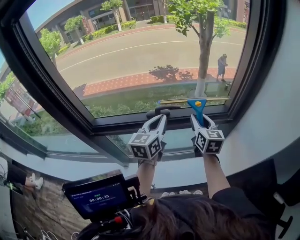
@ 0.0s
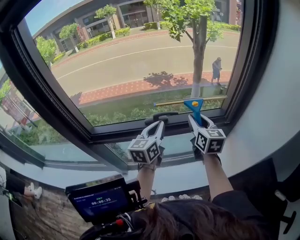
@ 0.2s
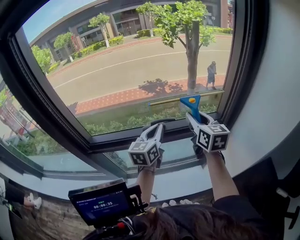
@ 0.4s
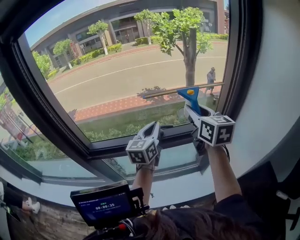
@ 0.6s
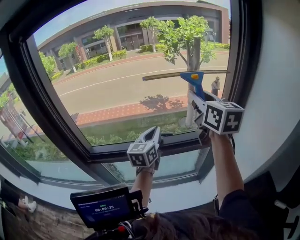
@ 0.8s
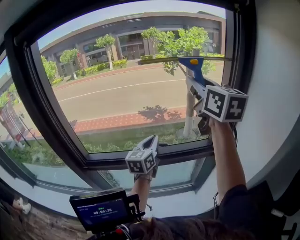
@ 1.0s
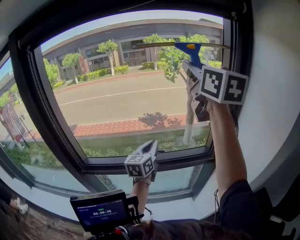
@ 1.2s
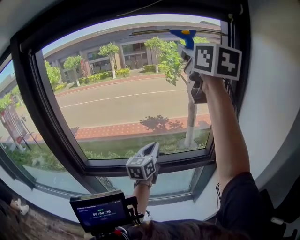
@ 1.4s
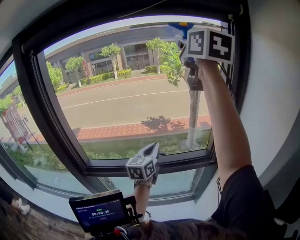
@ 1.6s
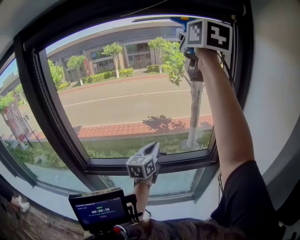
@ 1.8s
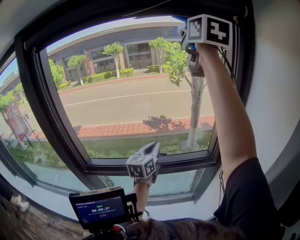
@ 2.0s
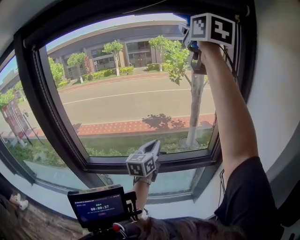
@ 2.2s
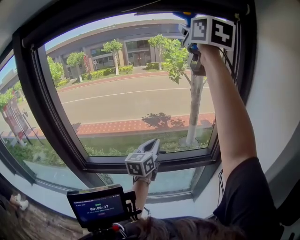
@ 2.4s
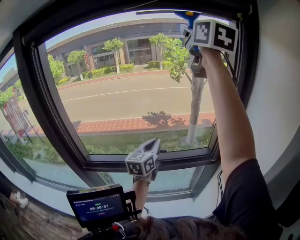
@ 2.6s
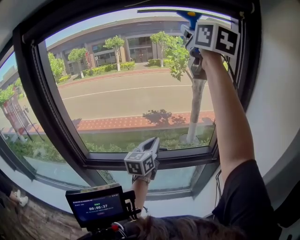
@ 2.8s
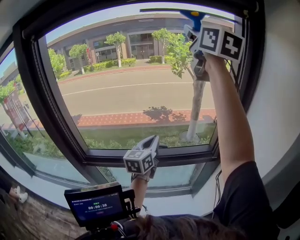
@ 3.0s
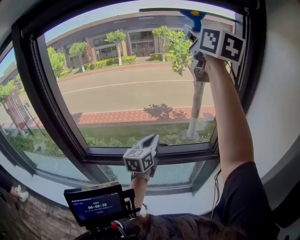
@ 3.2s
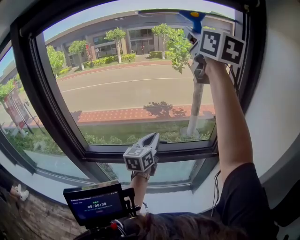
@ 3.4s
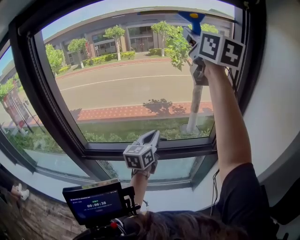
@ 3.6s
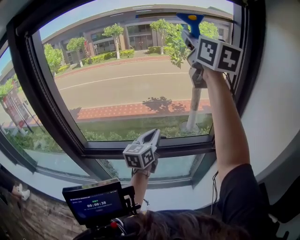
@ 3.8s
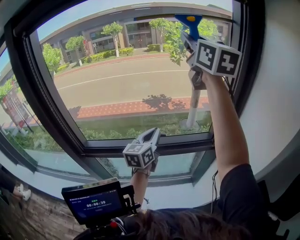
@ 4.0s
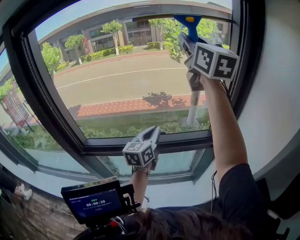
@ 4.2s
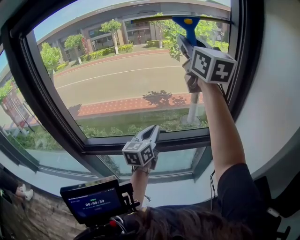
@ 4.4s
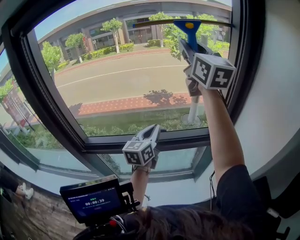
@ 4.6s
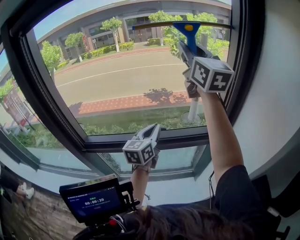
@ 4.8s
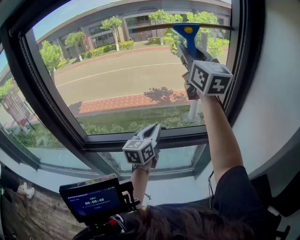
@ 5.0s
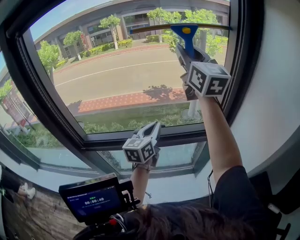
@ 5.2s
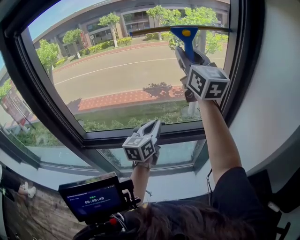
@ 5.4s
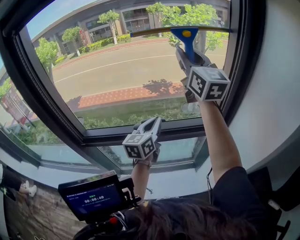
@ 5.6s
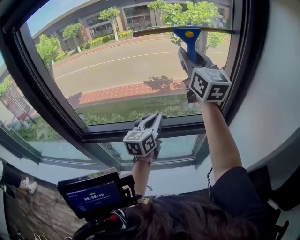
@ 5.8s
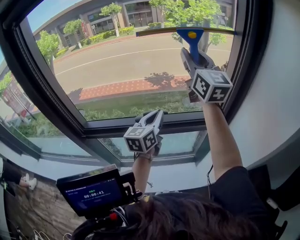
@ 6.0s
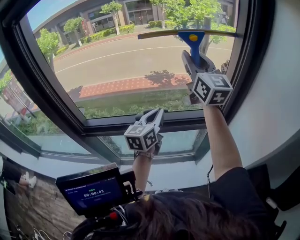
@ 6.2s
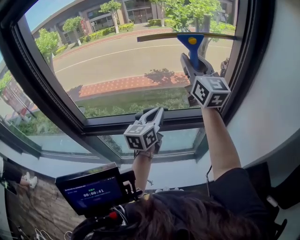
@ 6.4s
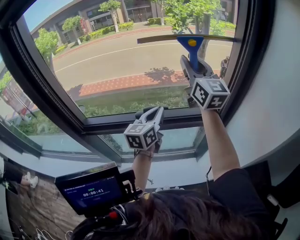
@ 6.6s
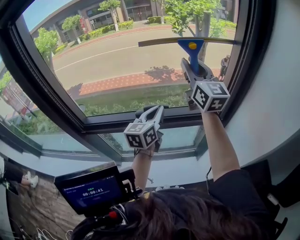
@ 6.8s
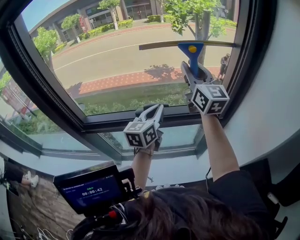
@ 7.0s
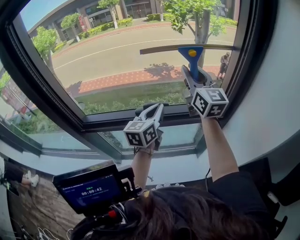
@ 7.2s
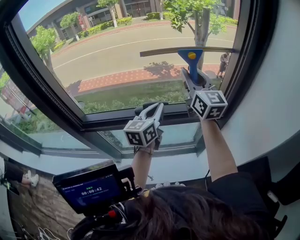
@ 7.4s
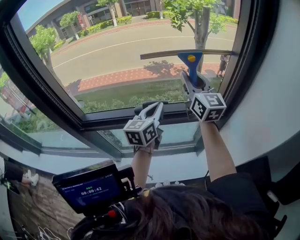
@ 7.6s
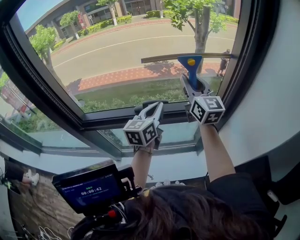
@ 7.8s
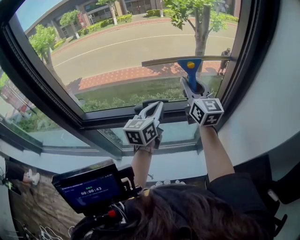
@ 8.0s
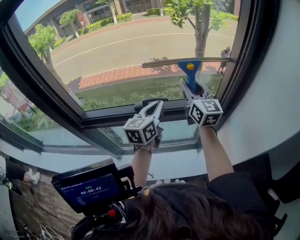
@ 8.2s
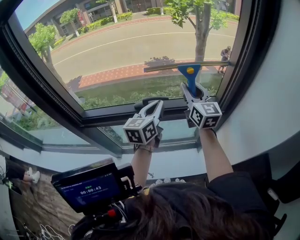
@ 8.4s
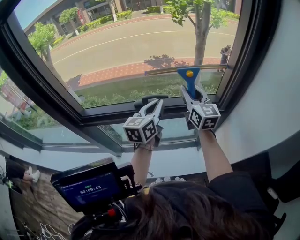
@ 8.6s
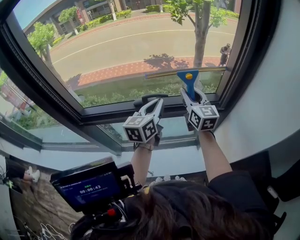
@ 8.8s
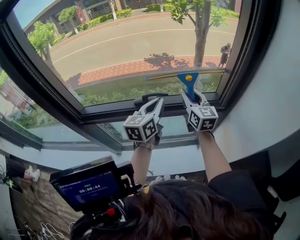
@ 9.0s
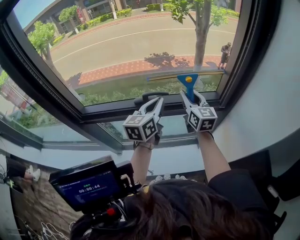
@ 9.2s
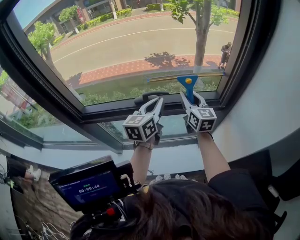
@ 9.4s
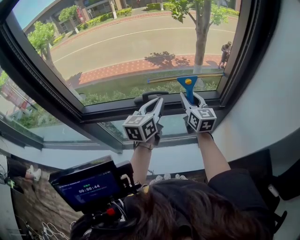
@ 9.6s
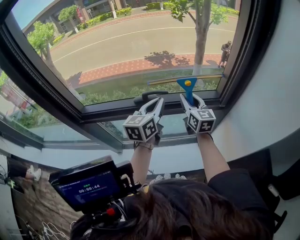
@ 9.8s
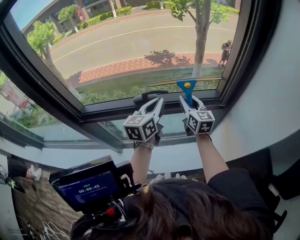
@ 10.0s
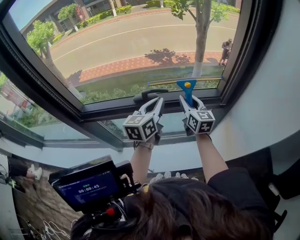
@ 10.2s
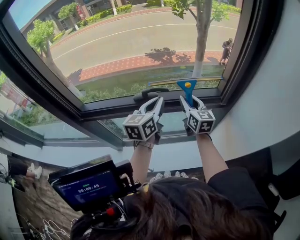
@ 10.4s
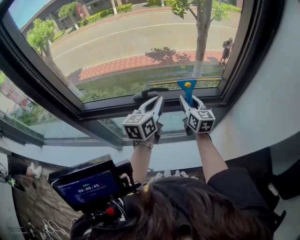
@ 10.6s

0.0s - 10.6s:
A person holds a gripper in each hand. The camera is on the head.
0.0s - 1.6s: The right gripper travels upward by about 50 cm, and rotates some 30 degrees, while the left gripper is displaced upward by approximately 5 cm.
1.6s - 3.0s: The grippers make only small movements.
3.0s - 4.6s: The right gripper is displaced downward by some 10 cm.
4.6s - 6.0s: The right gripper is displaced downward by about 10 cm.
6.0s - 7.6s: The right gripper is displaced downward by roughly 15 cm.
7.6s - 9.0s: The right gripper goes some 15 cm downward.
9.0s - 10.6s: The right gripper travels downward by roughly 5 cm.

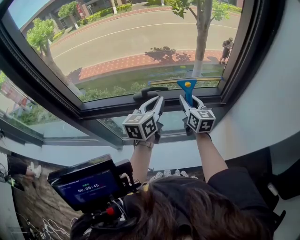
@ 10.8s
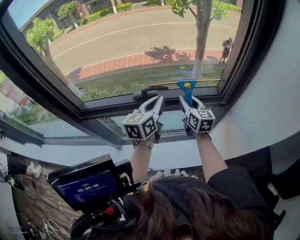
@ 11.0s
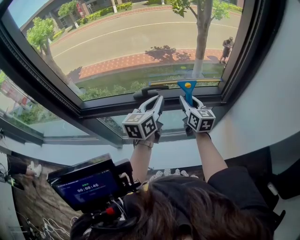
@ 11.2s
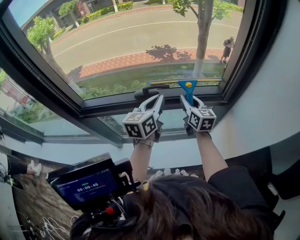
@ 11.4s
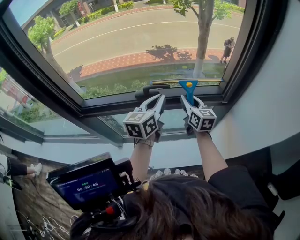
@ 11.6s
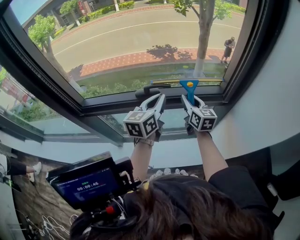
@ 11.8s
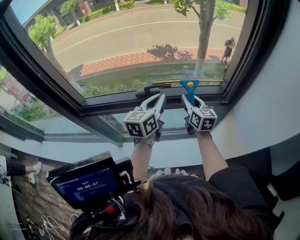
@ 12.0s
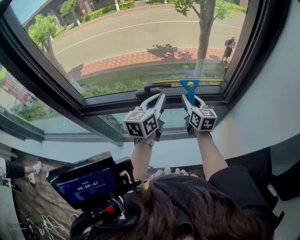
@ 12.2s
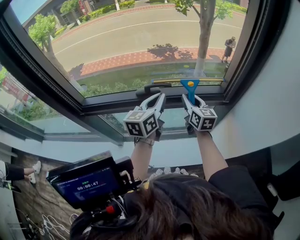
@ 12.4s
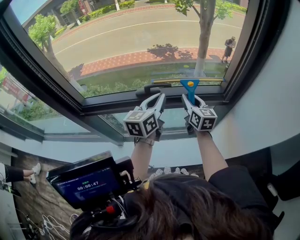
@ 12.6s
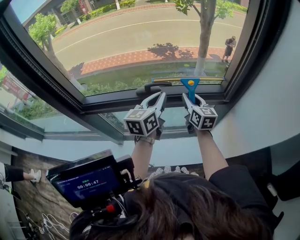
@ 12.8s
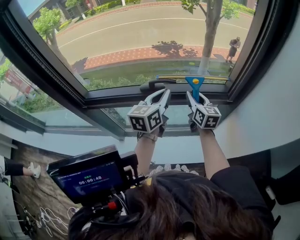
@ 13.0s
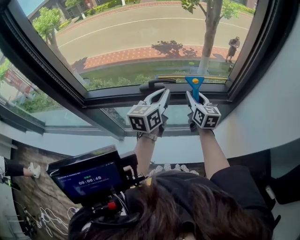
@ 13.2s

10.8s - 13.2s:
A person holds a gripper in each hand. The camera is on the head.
10.8s - 12.0s: The grippers stay close to where they were, moving slightly.
12.0s - 13.2s: Both grippers stay about where they are.

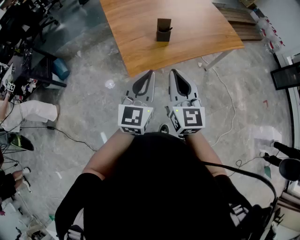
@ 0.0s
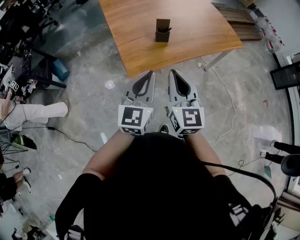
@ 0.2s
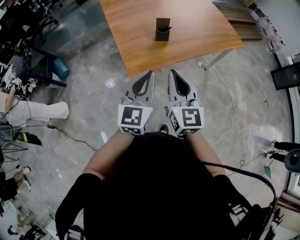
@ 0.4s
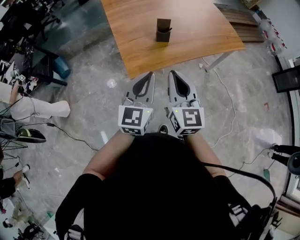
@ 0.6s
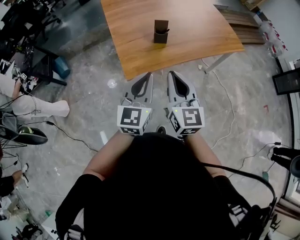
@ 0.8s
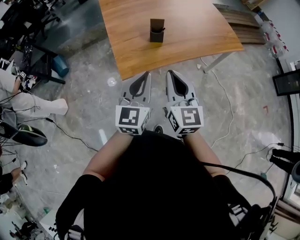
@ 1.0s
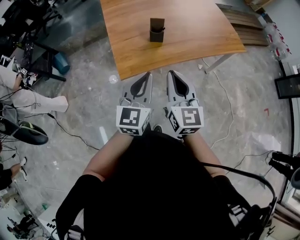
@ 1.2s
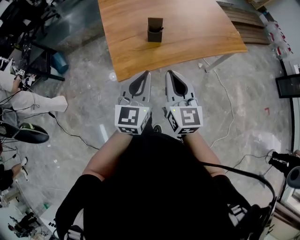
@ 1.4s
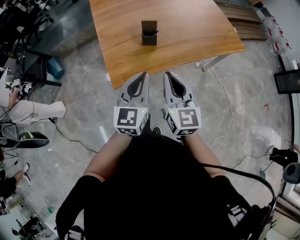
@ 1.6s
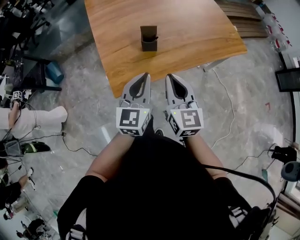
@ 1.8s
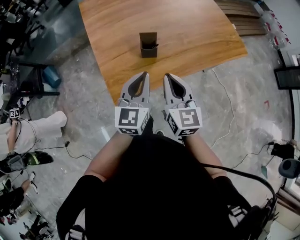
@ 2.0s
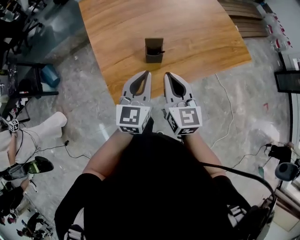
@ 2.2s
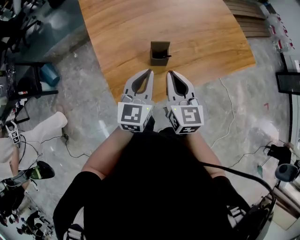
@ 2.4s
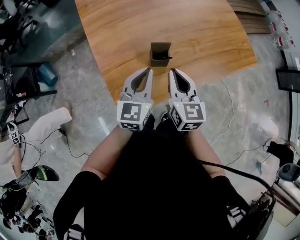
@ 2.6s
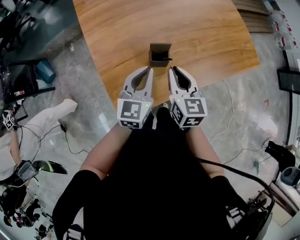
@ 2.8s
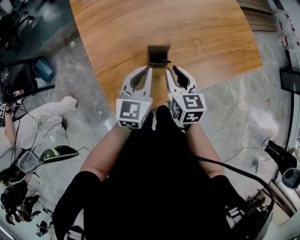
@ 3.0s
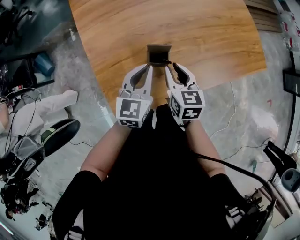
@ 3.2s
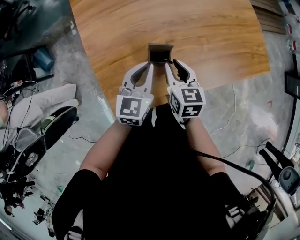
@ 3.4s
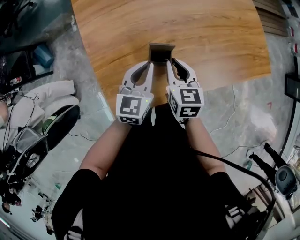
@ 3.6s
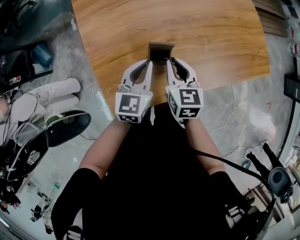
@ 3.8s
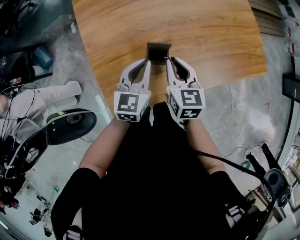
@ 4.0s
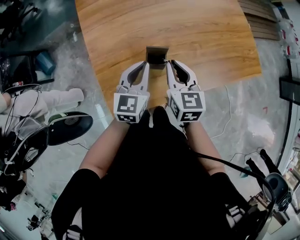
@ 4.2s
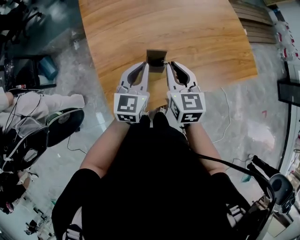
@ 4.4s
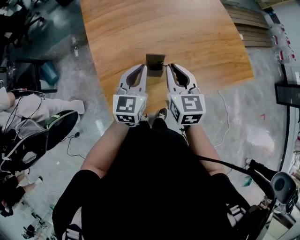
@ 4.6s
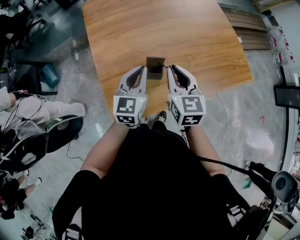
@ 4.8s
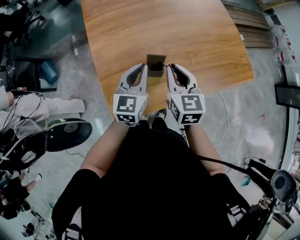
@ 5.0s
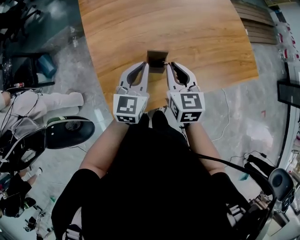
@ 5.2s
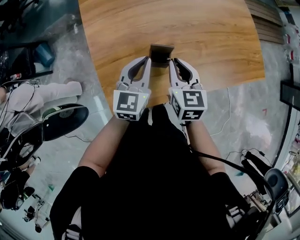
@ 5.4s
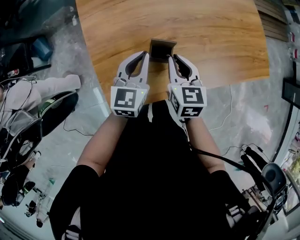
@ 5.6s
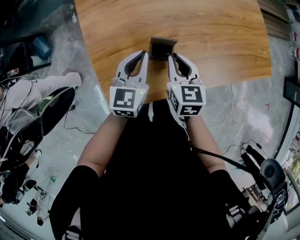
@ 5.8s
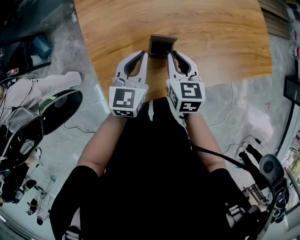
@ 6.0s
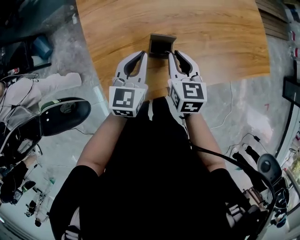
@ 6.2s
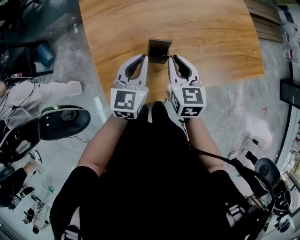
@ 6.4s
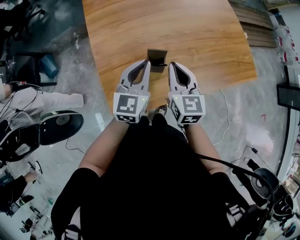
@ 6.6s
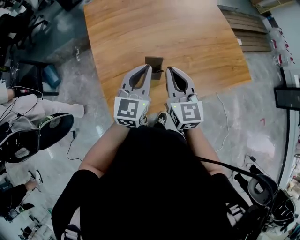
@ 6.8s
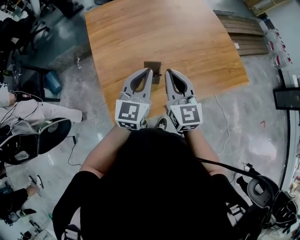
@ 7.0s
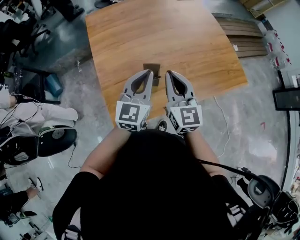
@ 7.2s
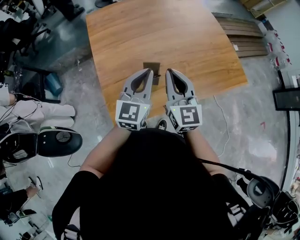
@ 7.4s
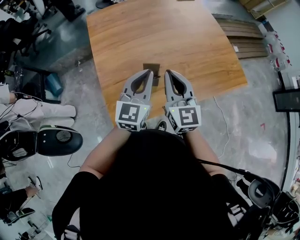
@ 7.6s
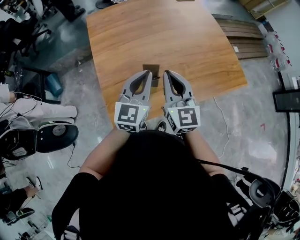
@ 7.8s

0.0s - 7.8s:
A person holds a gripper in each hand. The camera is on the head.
0.0s - 1.6s: Both grippers travel together forward, to the right and downward, some 15 cm.
1.6s - 3.2s: The two grippers go about 35 cm forward and downward. The right gripper changes its angle by about 30 degrees.
3.2s - 4.6s: The right gripper is displaced upward by some 15 cm, while the left gripper shifts some 5 cm upward.
4.6s - 6.2s: Both grippers travel together downward, some 10 cm.
6.2s - 7.8s: Both grippers move upward, some 15 cm. The right gripper tilts its fingers some 30 degrees upward.

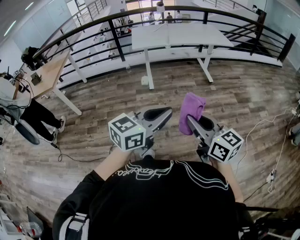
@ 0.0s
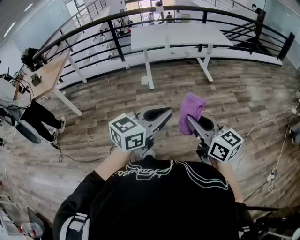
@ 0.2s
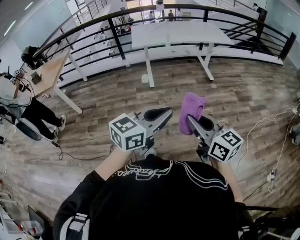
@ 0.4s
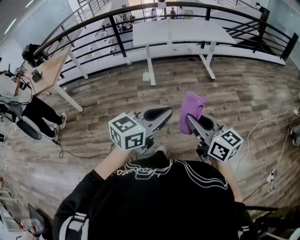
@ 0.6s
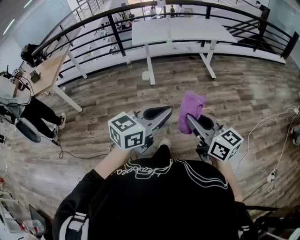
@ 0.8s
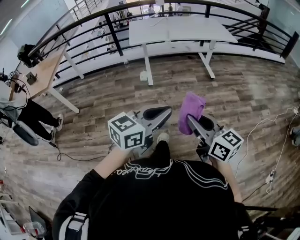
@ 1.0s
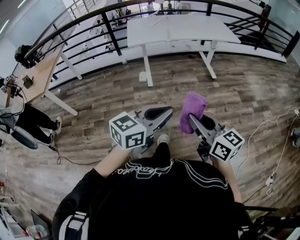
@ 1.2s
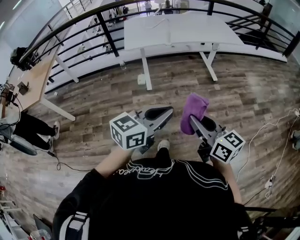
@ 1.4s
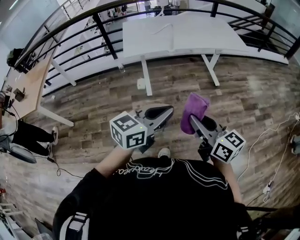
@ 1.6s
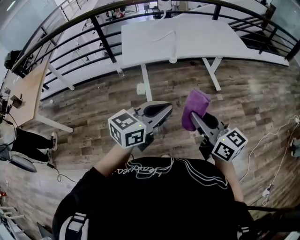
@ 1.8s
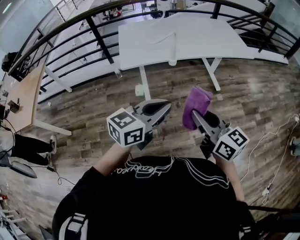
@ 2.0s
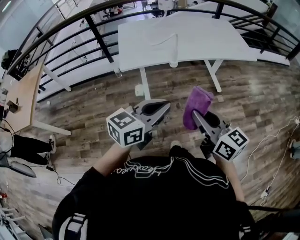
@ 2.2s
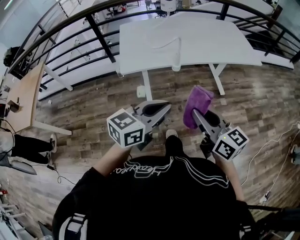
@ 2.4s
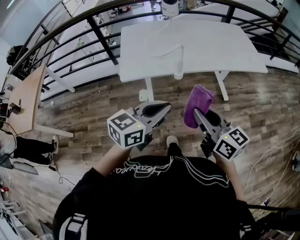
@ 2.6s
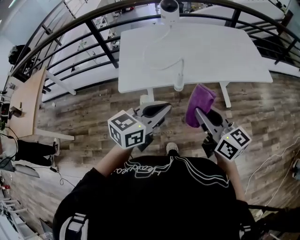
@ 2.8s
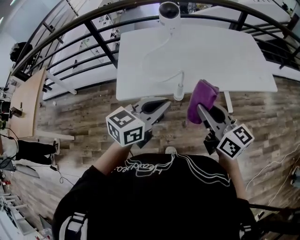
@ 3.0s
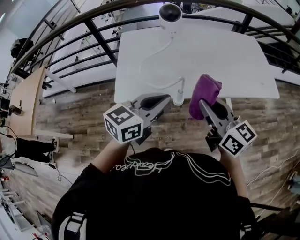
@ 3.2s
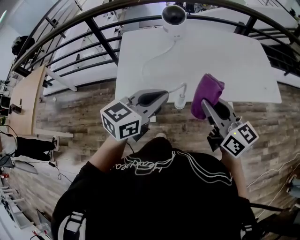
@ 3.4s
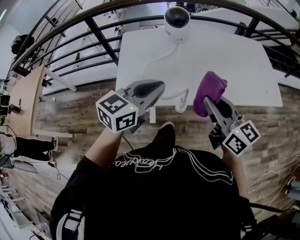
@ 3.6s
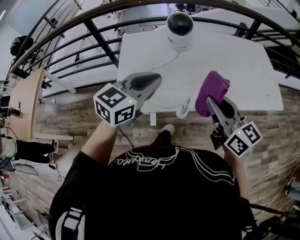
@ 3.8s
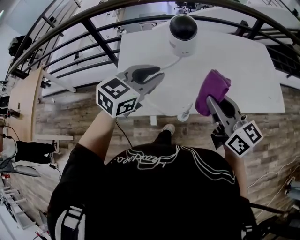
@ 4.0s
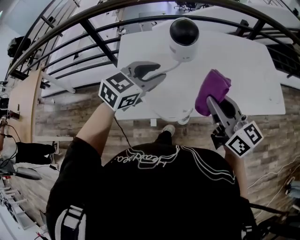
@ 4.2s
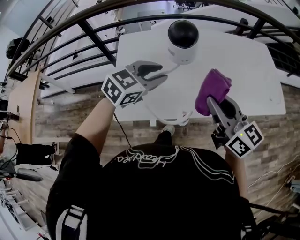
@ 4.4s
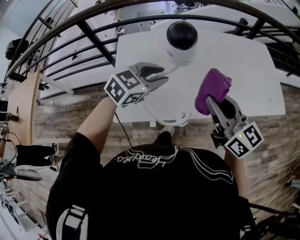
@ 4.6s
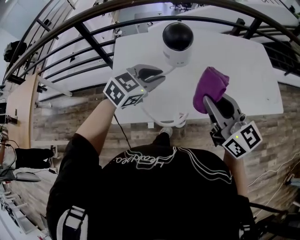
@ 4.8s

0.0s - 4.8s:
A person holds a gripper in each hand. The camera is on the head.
0.0s - 1.6s: The pair of grippers is taken forward, about 40 cm.
1.6s - 3.2s: The pair of grippers is taken forward, about 60 cm.
3.2s - 4.8s: The left gripper goes some 20 cm forward, and turns by roughly 30 degrees; the right gripper travels forward by about 15 cm.
